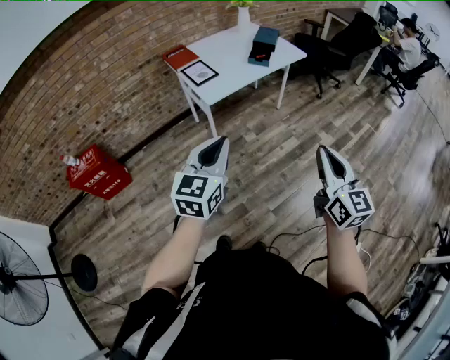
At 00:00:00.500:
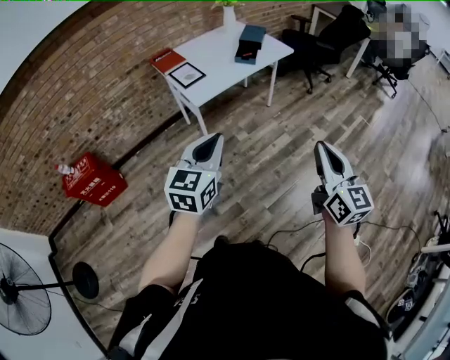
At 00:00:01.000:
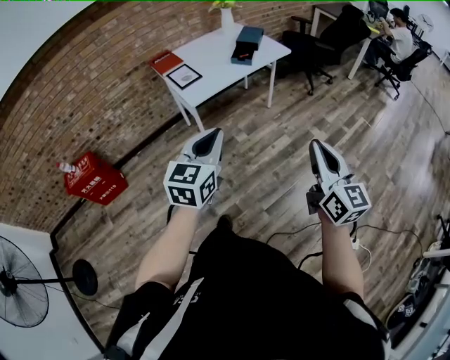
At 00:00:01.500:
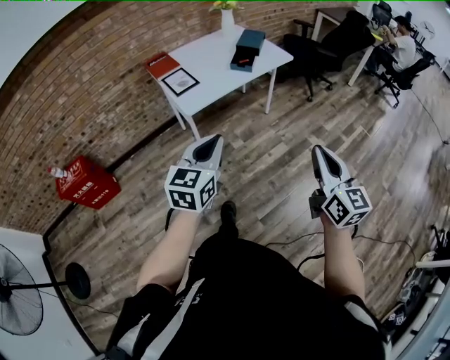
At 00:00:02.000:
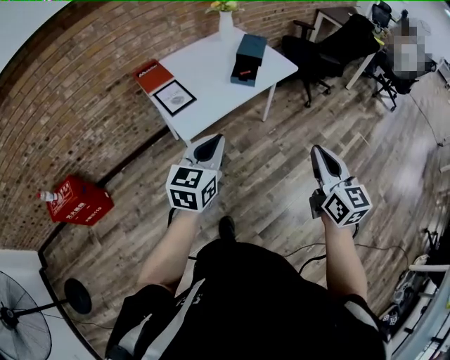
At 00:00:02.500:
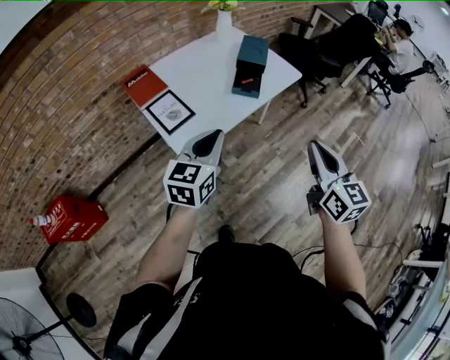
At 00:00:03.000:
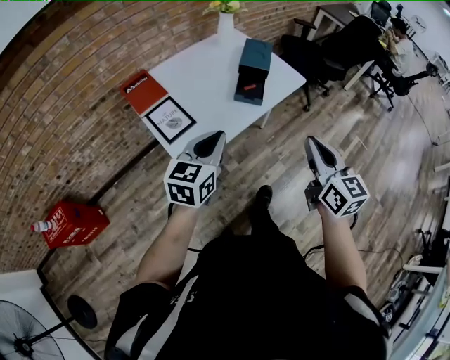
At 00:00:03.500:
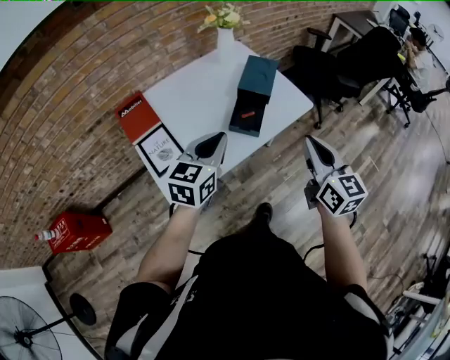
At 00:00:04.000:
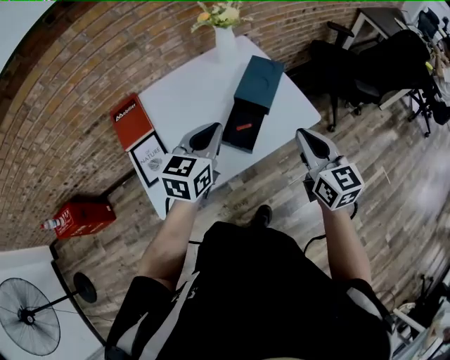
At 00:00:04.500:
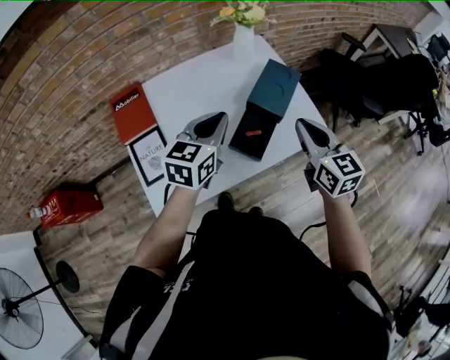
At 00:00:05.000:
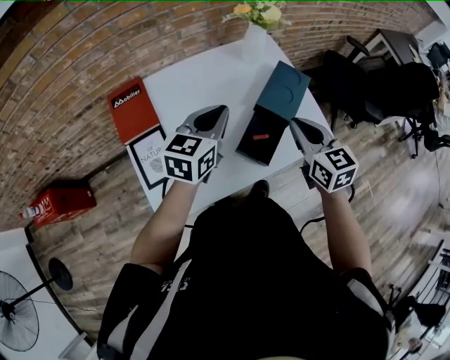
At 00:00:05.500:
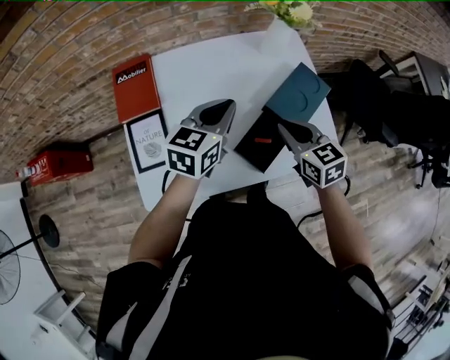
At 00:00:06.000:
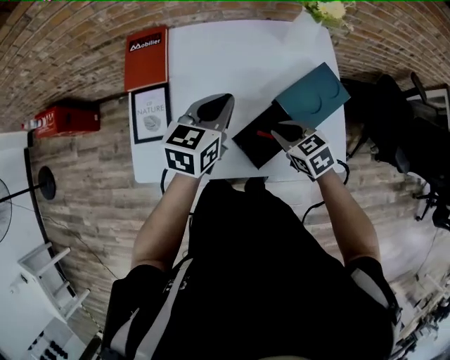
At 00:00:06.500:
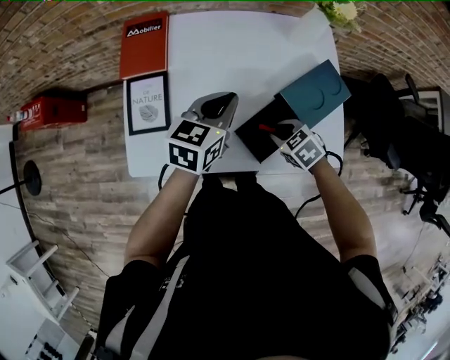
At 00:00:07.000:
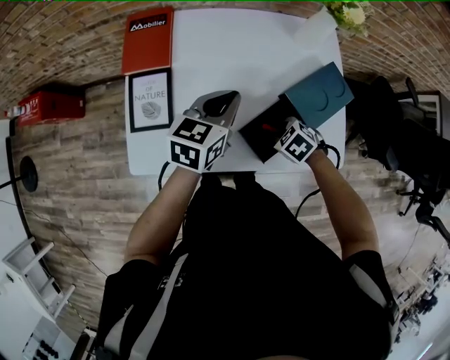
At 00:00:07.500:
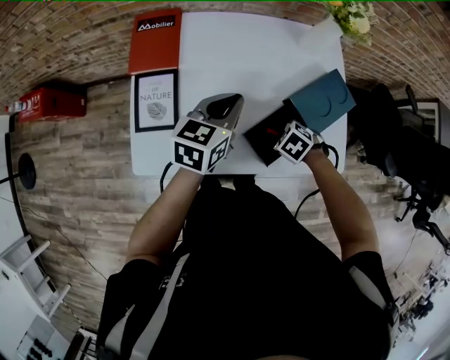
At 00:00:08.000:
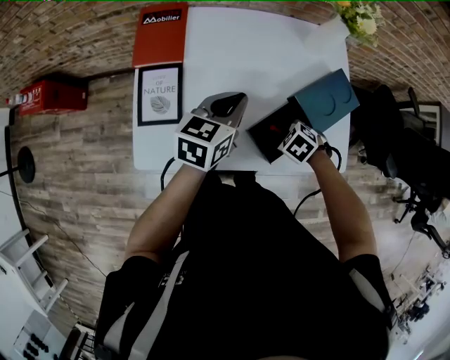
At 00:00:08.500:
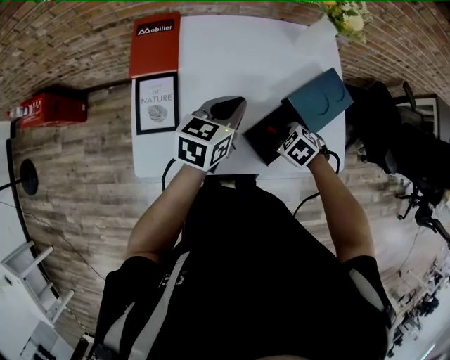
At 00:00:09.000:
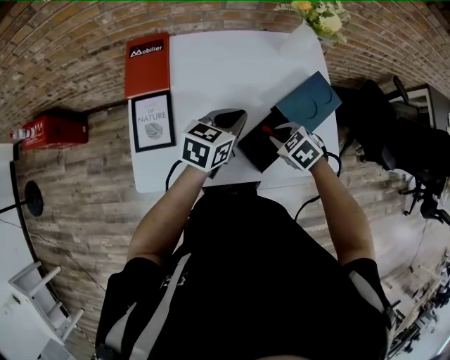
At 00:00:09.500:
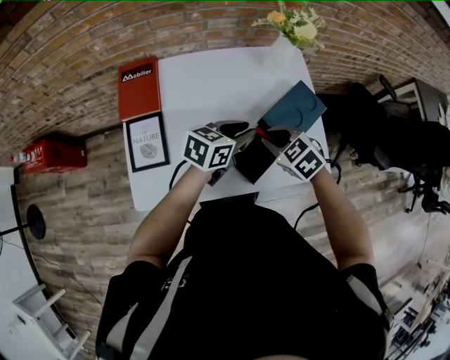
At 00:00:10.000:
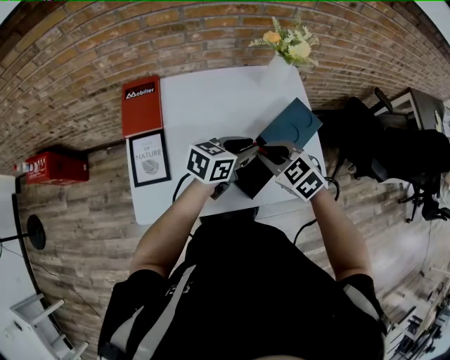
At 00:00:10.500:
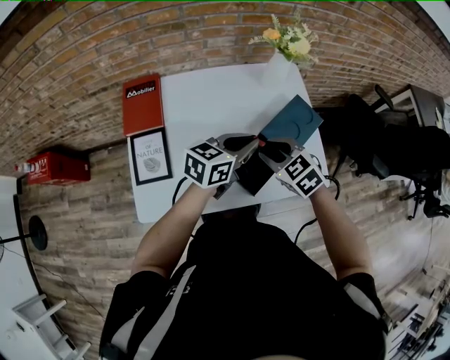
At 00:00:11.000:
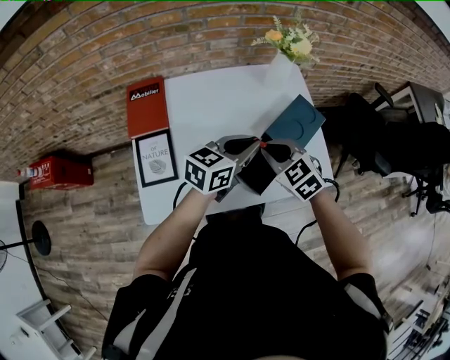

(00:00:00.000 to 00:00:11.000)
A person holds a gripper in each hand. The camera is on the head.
00:00:00.000 - 00:00:02.000: The grippers both shift forward by roughly 25 cm.
00:00:02.000 - 00:00:03.500: Both grippers travel together forward, approximately 35 cm.
00:00:03.500 - 00:00:05.500: The left gripper changes place by approximately 25 cm. Meanwhile the right gripper changes place by about 35 cm, and changes its angle by roughly 50 degrees.
00:00:05.500 - 00:00:07.500: The right gripper travels downward by approximately 20 cm, and tips its fingers downward by about 50 degrees, while the left gripper heads downward, covering approximately 5 cm.
00:00:07.500 - 00:00:09.000: The right gripper shifts about 10 cm upward. Meanwhile the left gripper changes place by some 5 cm.
00:00:09.000 - 00:00:11.000: The left gripper shifts some 10 cm upward and to the right, and opens, then closes again. Meanwhile the right gripper travels upward by about 10 cm, and changes its angle by about 30 degrees.

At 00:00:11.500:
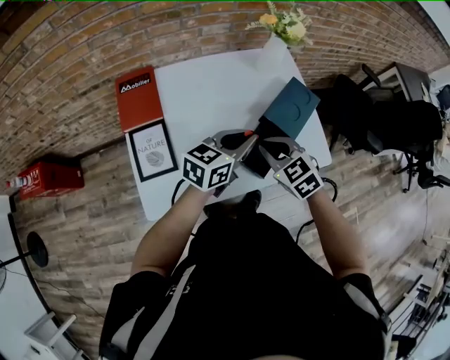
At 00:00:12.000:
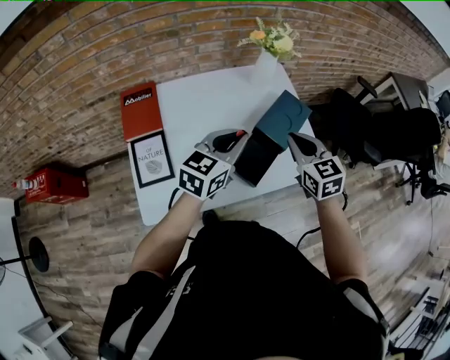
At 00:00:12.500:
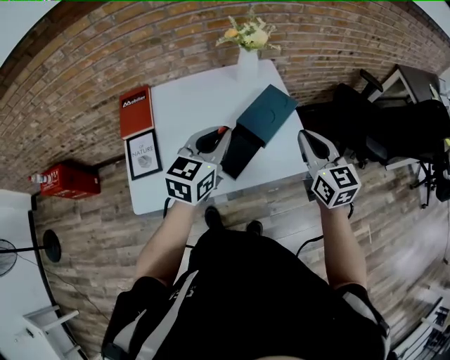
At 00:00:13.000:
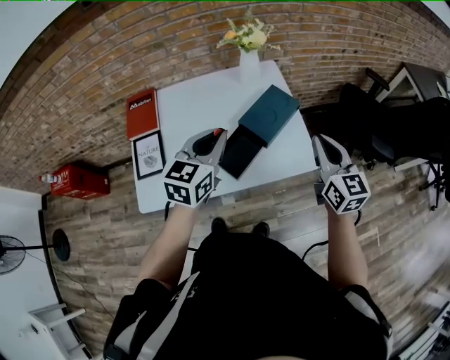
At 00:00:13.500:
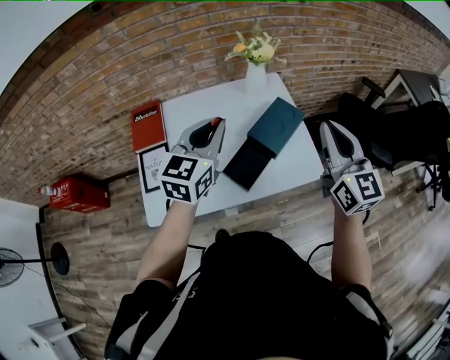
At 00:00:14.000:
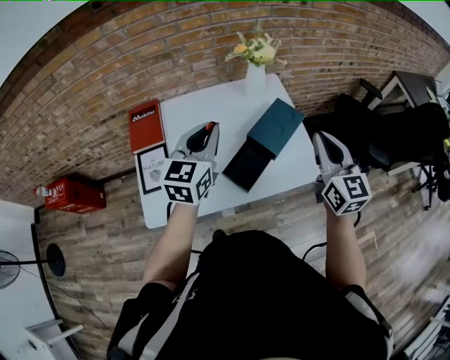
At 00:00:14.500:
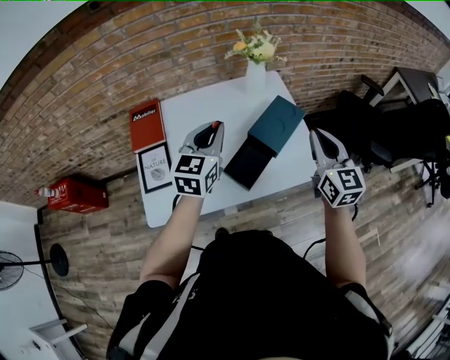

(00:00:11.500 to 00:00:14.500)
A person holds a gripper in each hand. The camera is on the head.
00:00:11.500 - 00:00:13.000: The left gripper moves upward and to the right, roughly 10 cm, and rotates some 30 degrees, while the right gripper travels to the right and upward by roughly 30 cm, and tilts its fingers about 40 degrees upward.
00:00:13.000 - 00:00:14.500: The left gripper is displaced to the left and forward by roughly 10 cm; the right gripper heads to the left, covering approximately 5 cm, and travels upward and back again, roughly 10 cm each way.

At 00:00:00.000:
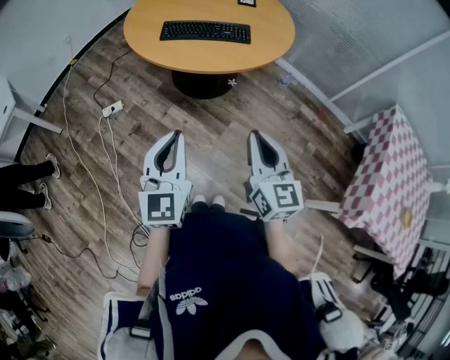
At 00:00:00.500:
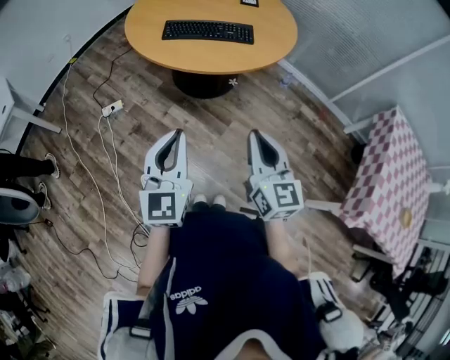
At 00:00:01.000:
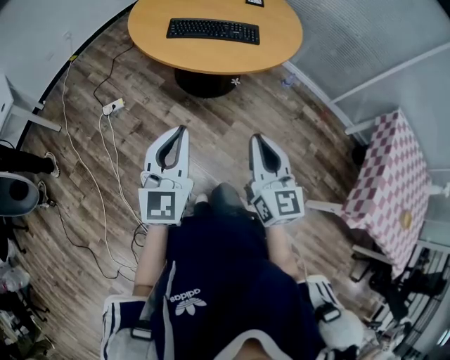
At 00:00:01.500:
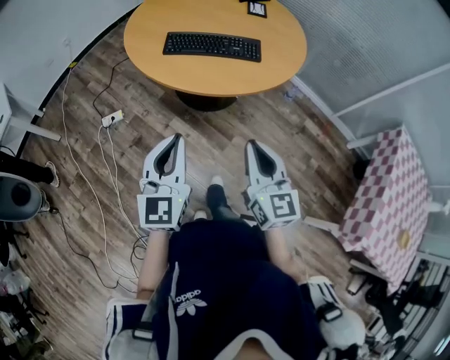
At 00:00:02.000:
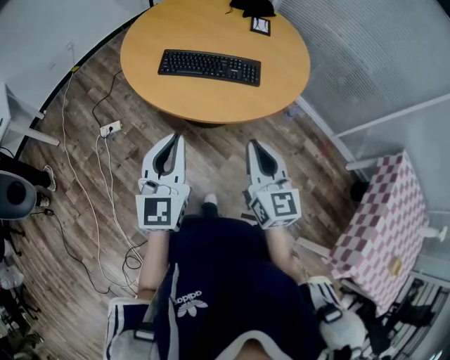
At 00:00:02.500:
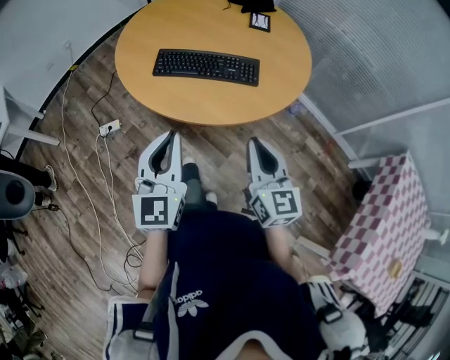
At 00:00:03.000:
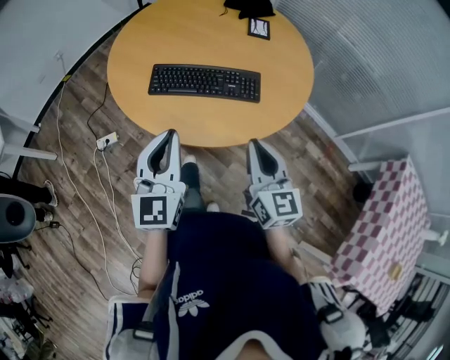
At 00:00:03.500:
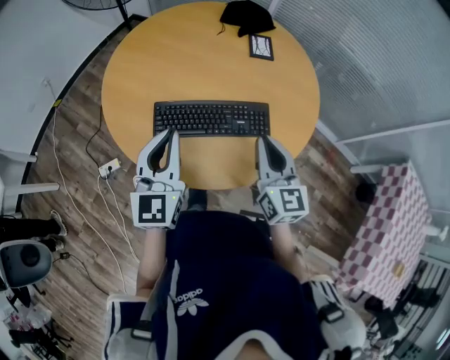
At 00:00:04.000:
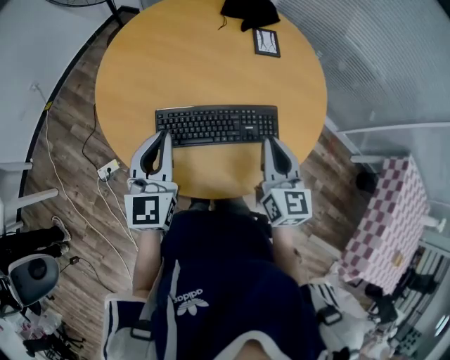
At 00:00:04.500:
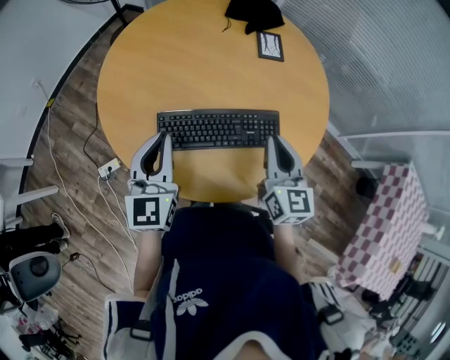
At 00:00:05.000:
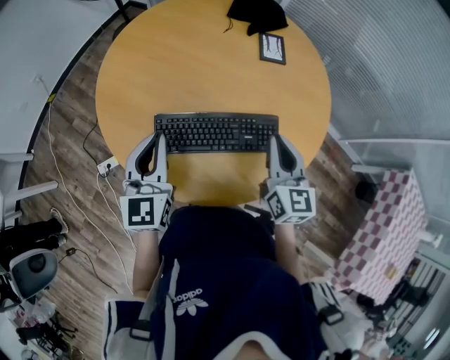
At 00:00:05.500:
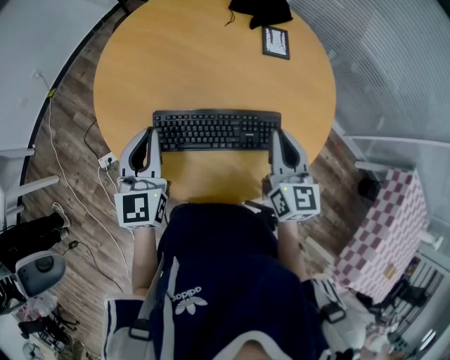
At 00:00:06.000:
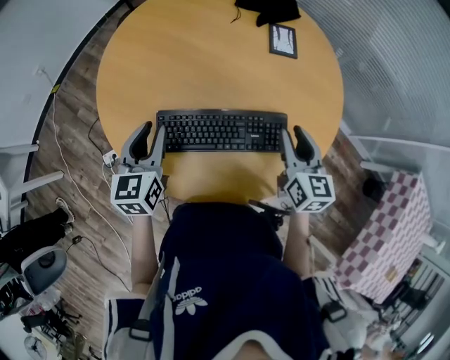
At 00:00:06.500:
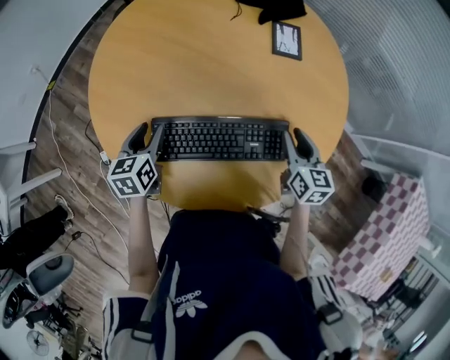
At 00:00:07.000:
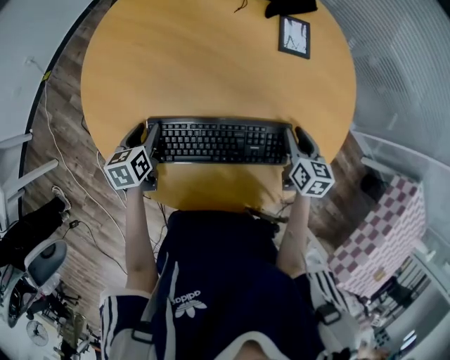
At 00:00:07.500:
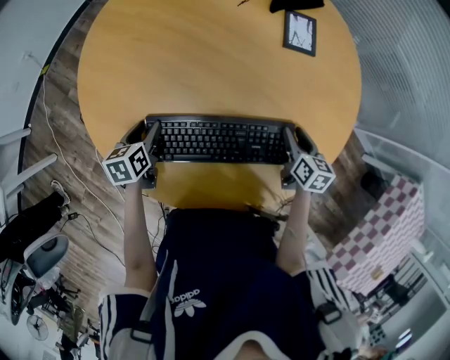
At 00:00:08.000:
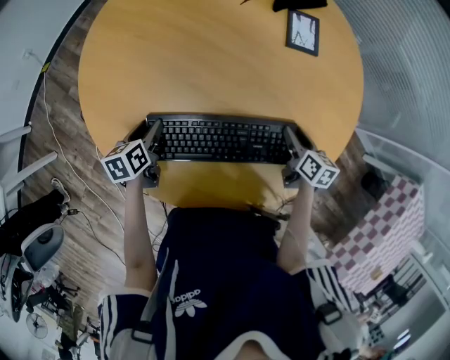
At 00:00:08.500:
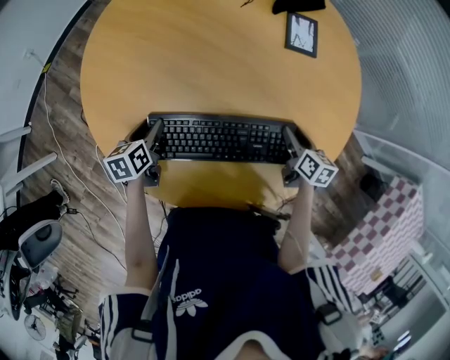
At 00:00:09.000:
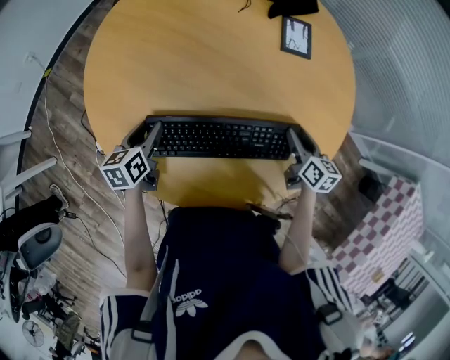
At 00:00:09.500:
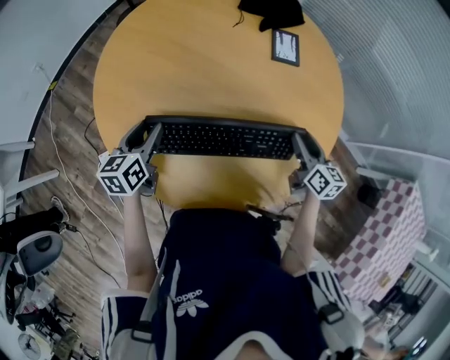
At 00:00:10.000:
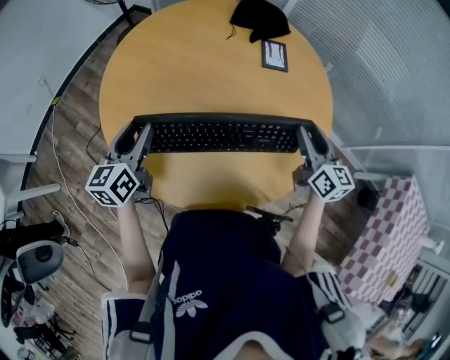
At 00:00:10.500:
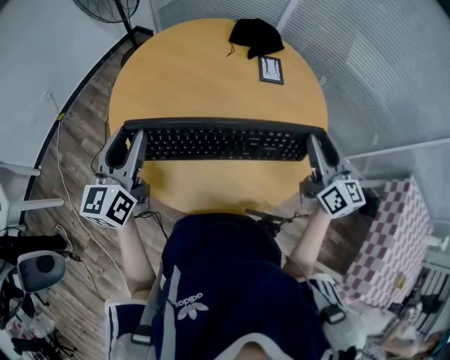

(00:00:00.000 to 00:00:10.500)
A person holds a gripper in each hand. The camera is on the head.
00:00:00.000 - 00:00:02.000: Both grippers move forward, some 20 cm.
00:00:02.000 - 00:00:04.000: The two grippers go some 35 cm forward.
00:00:04.000 - 00:00:06.500: The left gripper is displaced downward and forward by roughly 20 cm, swivels approximately 40 degrees, and opens its fingers. Meanwhile the right gripper travels downward, forward and to the right by approximately 20 cm, and opens its fingers.
00:00:06.500 - 00:00:08.500: Both grippers move downward, some 10 cm. The right gripper swivels some 20 degrees.
00:00:08.500 - 00:00:10.500: Both grippers travel together upward, approximately 30 cm. The right gripper tips its fingers upward by roughly 40 degrees; the left gripper angles its fingers upward, by approximately 40 degrees.

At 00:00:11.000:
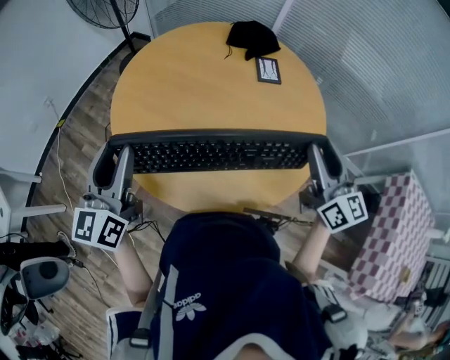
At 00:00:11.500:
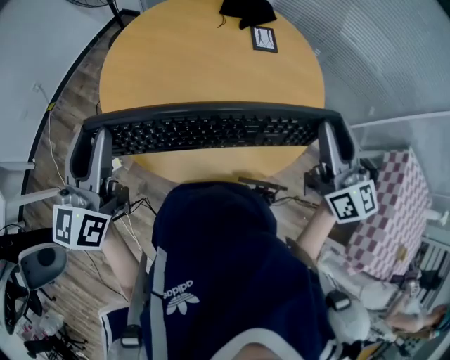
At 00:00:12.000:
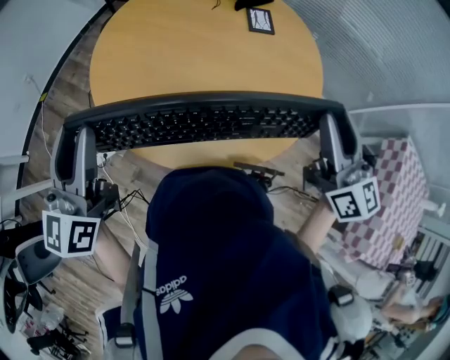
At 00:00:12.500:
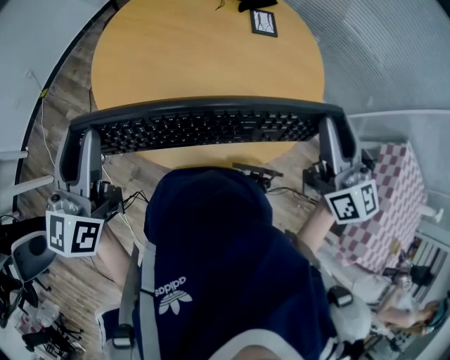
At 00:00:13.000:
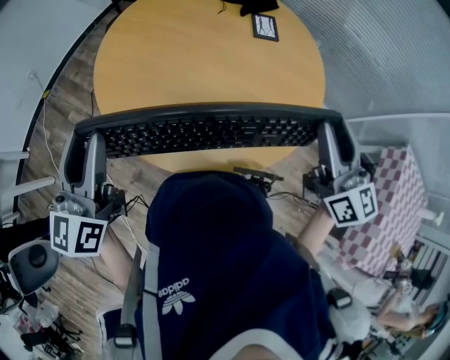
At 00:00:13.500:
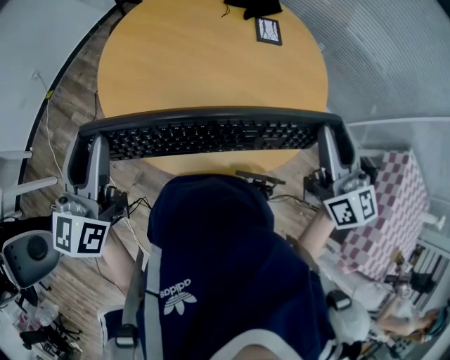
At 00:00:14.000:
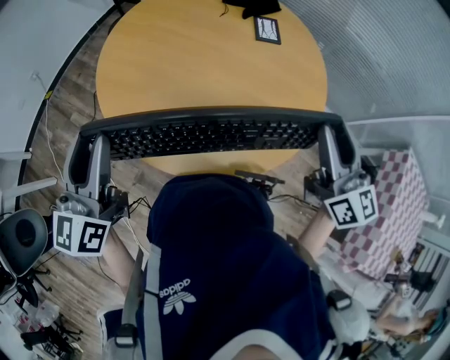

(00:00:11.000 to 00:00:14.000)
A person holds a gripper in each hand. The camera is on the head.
00:00:11.000 - 00:00:12.500: The left gripper shifts by roughly 5 cm. The right gripper ends up roughly 5 cm from where it was.
00:00:12.500 - 00:00:14.000: Both grippers stay put.
